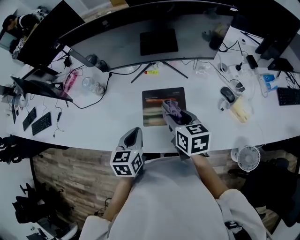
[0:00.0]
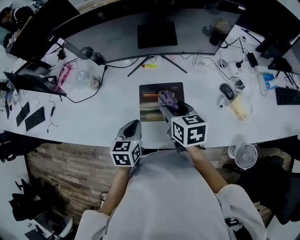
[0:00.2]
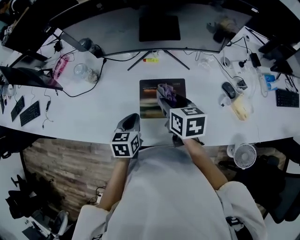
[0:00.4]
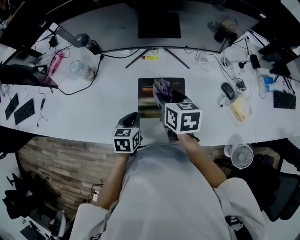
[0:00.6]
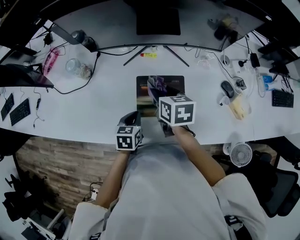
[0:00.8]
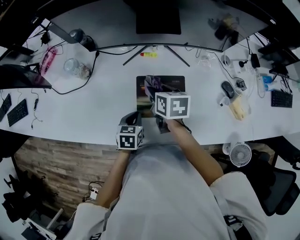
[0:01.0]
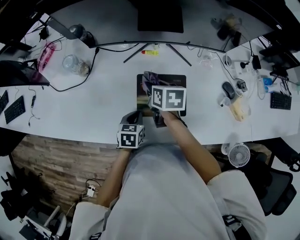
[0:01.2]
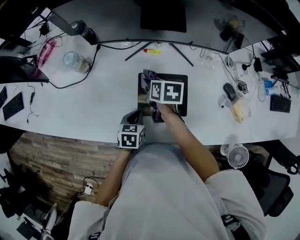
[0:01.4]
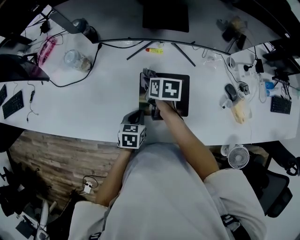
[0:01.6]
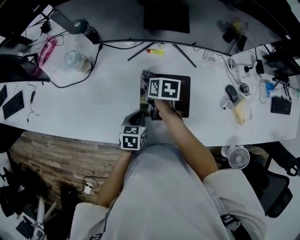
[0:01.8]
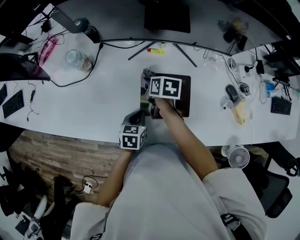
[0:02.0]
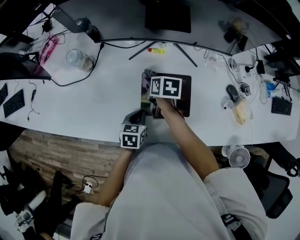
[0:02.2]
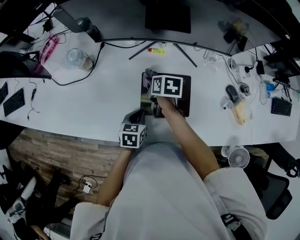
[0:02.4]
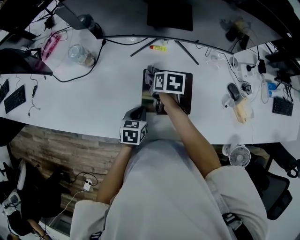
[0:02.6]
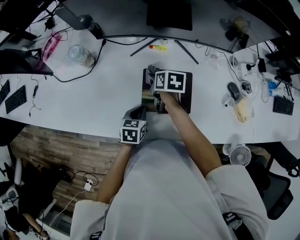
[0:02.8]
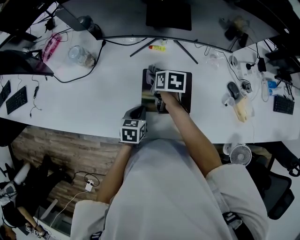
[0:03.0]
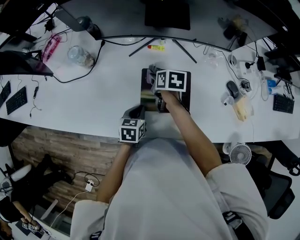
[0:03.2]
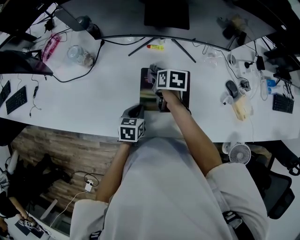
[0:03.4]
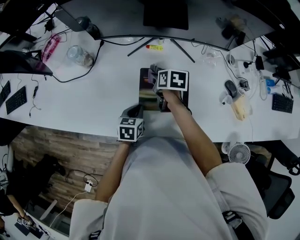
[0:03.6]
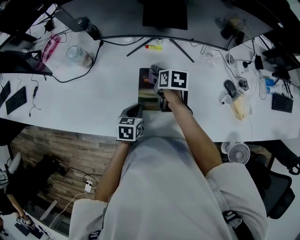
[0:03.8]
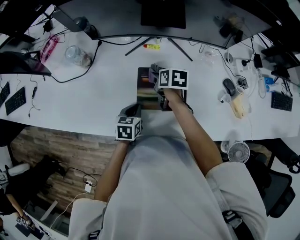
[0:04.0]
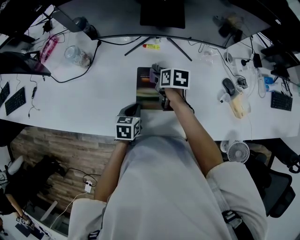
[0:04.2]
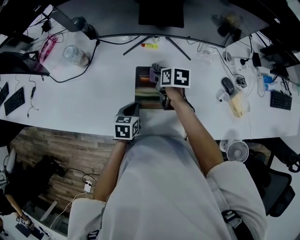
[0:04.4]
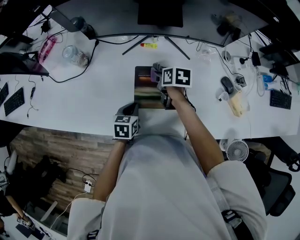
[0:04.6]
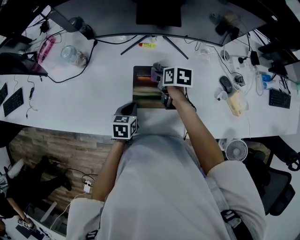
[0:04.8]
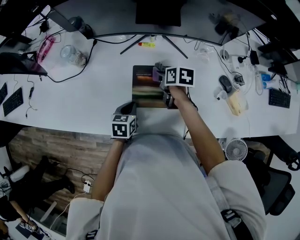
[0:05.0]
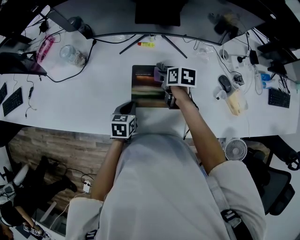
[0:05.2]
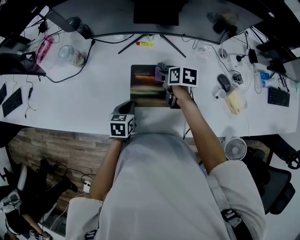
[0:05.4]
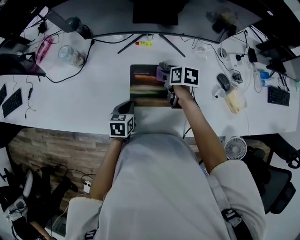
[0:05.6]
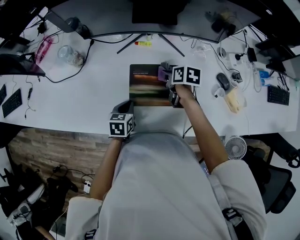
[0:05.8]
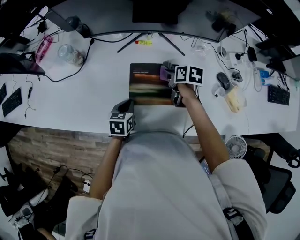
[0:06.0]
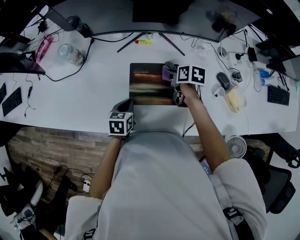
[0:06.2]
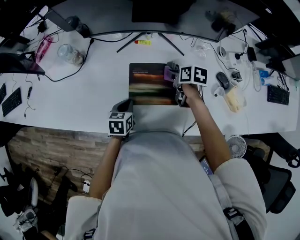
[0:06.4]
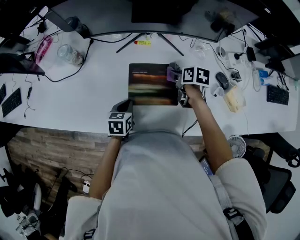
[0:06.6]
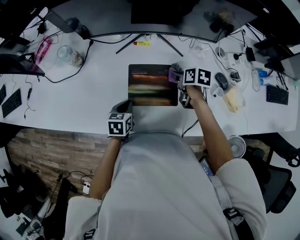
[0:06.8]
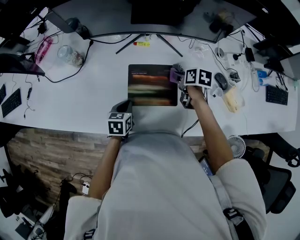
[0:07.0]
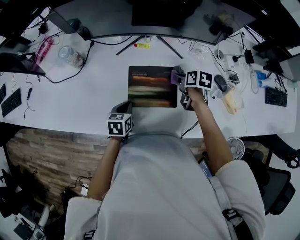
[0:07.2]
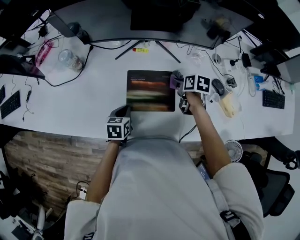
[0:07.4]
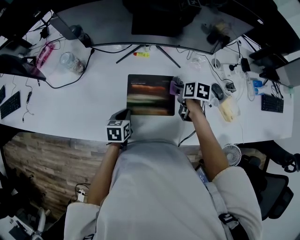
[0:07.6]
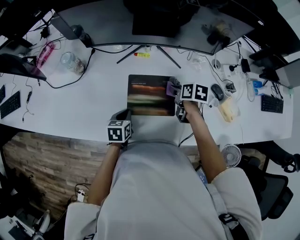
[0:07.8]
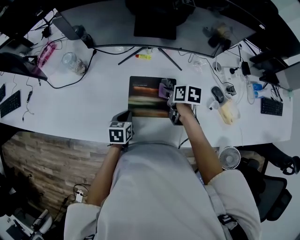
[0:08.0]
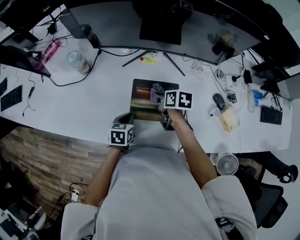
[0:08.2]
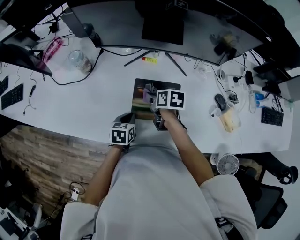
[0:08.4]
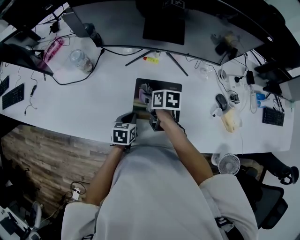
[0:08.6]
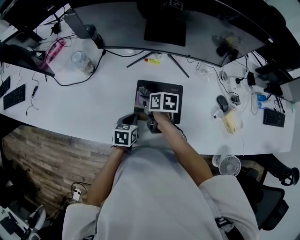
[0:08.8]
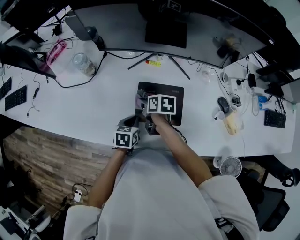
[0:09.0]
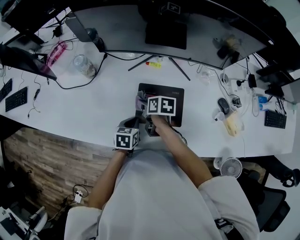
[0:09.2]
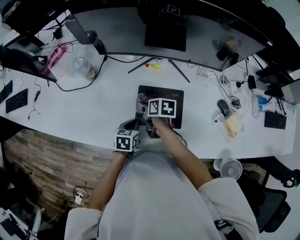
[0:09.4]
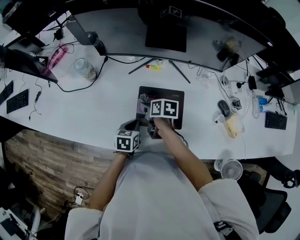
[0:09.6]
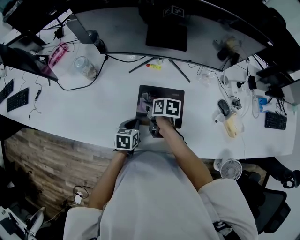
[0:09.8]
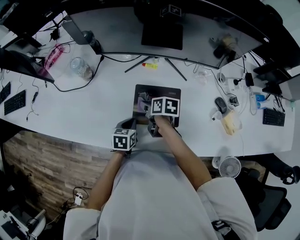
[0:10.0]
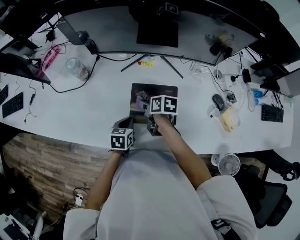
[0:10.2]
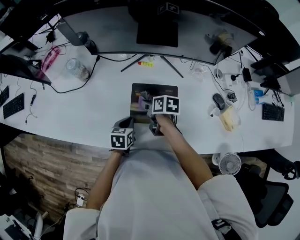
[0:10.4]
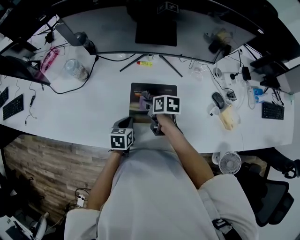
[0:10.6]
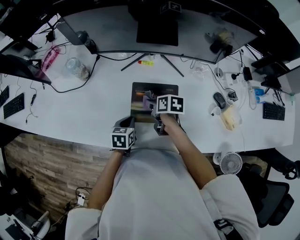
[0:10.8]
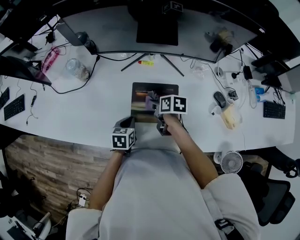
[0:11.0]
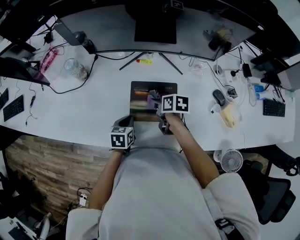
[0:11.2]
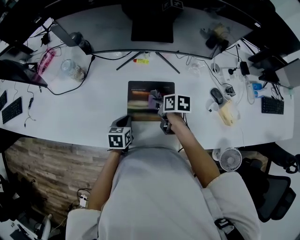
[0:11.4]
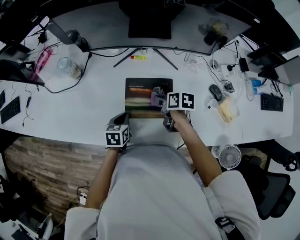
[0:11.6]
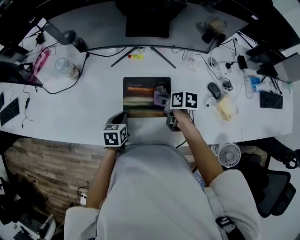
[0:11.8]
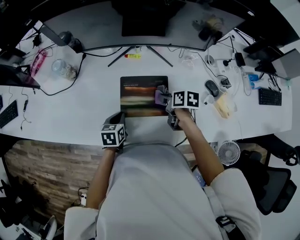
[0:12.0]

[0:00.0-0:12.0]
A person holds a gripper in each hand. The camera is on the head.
0:00.0 to 0:01.6: The left gripper travels downward by some 20 cm; the right gripper goes approximately 25 cm downward, forward and to the left, and swivels some 20 degrees.
0:01.6 to 0:03.0: The grippers move only a little.
0:03.0 to 0:04.4: There are only small adjustments of the grippers.
0:04.4 to 0:06.0: The right gripper heads to the right, covering approximately 10 cm.
0:06.0 to 0:07.6: The right gripper heads to the right, covering about 5 cm.
0:07.6 to 0:09.0: The right gripper is displaced to the left by about 20 cm.
0:09.0 to 0:10.4: The grippers move only a little.
0:10.4 to 0:12.0: The right gripper heads to the right, covering roughly 10 cm.

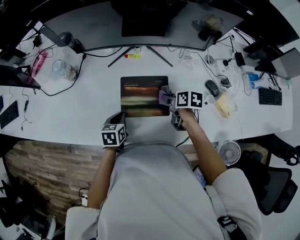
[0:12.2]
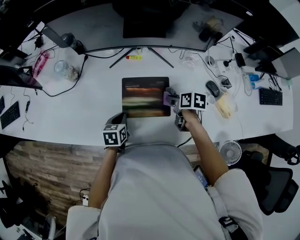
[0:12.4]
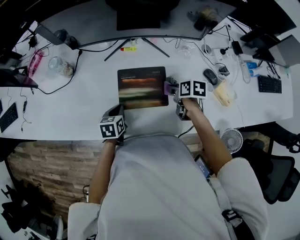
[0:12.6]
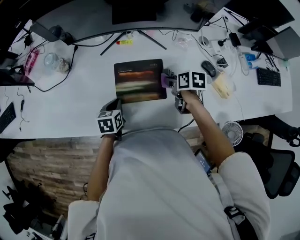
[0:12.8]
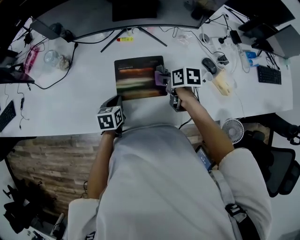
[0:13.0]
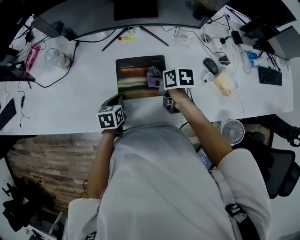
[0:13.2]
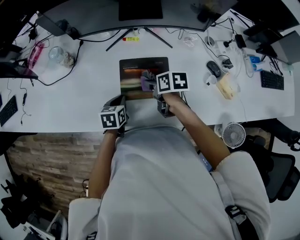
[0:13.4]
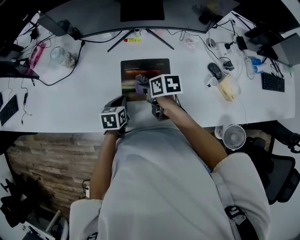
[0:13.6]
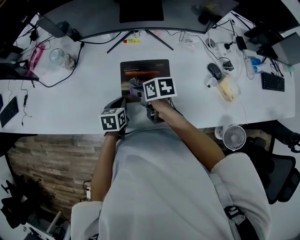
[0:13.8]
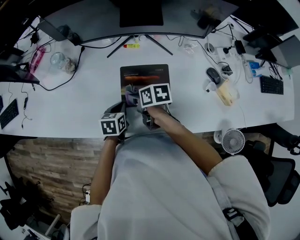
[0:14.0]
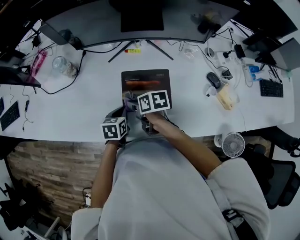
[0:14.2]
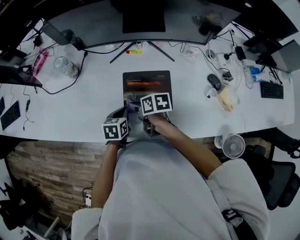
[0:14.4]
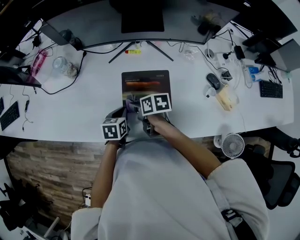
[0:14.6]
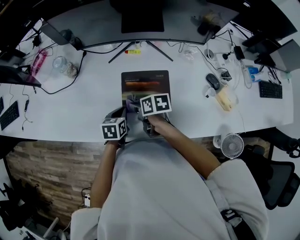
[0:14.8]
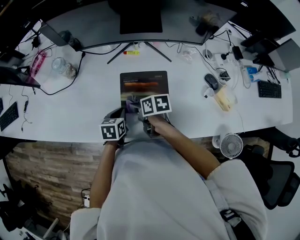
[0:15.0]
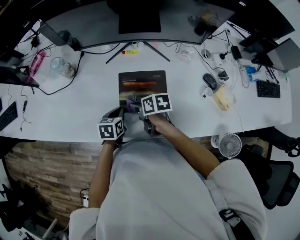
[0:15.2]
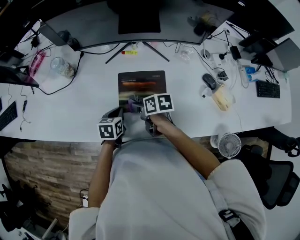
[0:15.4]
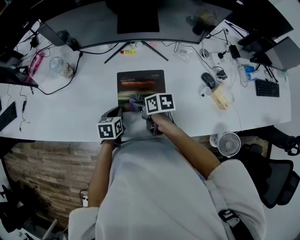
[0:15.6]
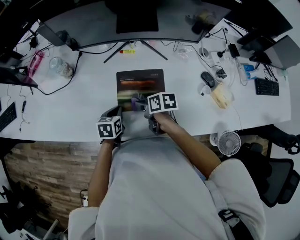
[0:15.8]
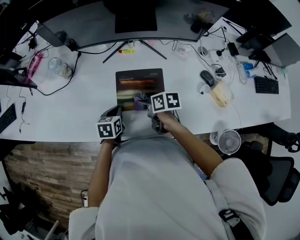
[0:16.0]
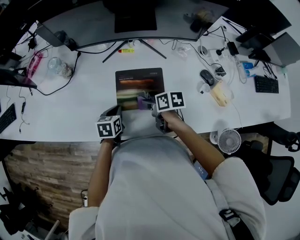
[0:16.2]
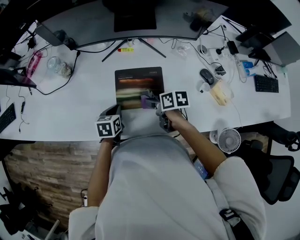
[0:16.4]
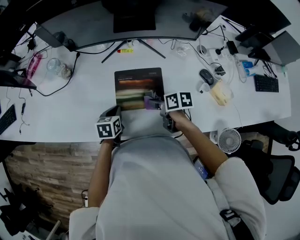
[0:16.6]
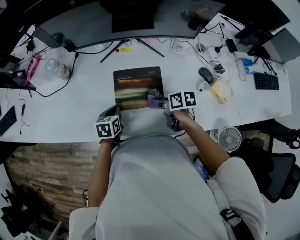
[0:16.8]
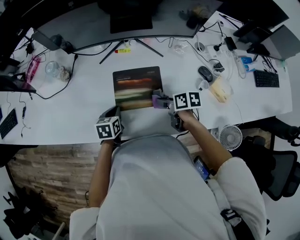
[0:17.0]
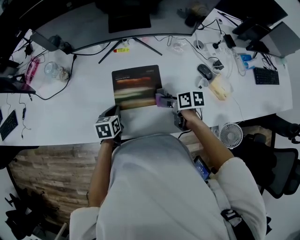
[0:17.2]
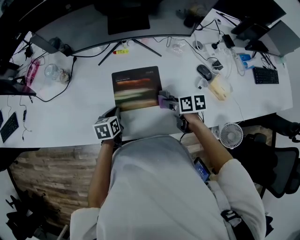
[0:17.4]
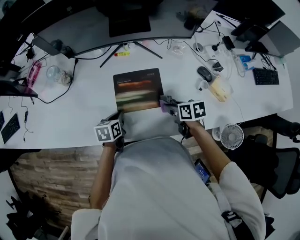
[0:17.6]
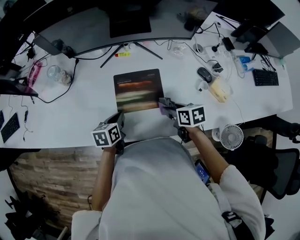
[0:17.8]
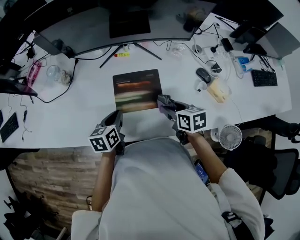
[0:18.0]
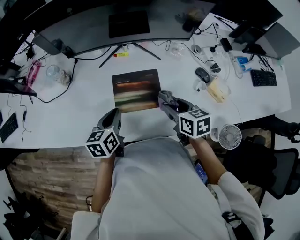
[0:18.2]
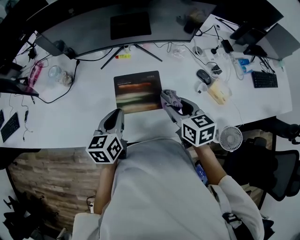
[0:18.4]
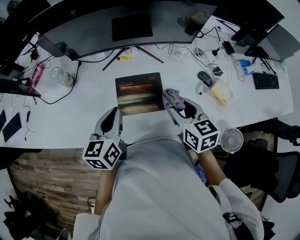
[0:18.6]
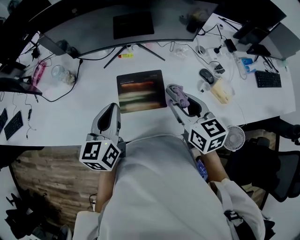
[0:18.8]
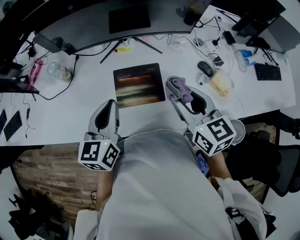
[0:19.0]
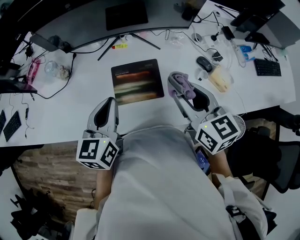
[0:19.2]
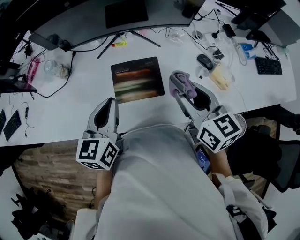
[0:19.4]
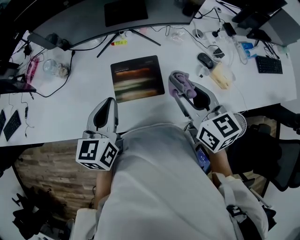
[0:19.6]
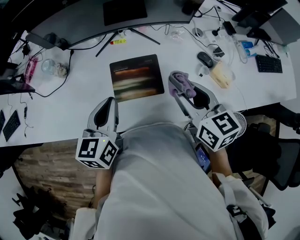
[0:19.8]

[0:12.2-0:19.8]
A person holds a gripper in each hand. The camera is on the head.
0:12.2 to 0:13.8: The right gripper is displaced to the left by about 15 cm.
0:13.8 to 0:15.2: The grippers move only a little.
0:15.2 to 0:16.8: The right gripper travels to the right by roughly 10 cm.
0:16.8 to 0:18.2: Both grippers move upward, approximately 10 cm. The right gripper rotates about 30 degrees.
0:18.2 to 0:19.8: The two grippers go about 10 cm upward.

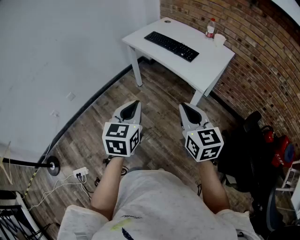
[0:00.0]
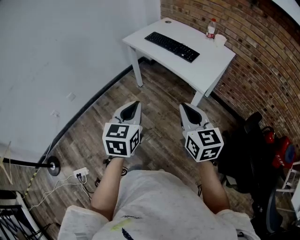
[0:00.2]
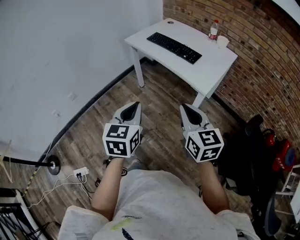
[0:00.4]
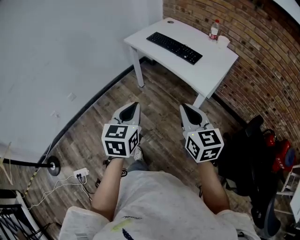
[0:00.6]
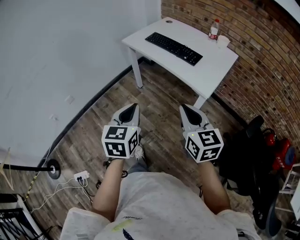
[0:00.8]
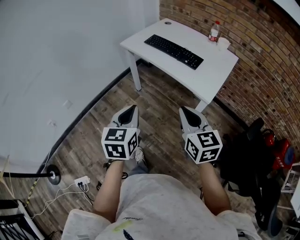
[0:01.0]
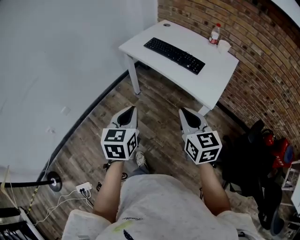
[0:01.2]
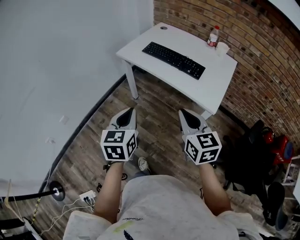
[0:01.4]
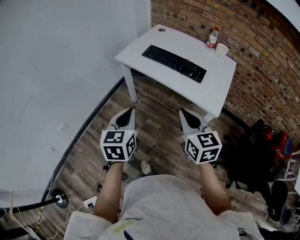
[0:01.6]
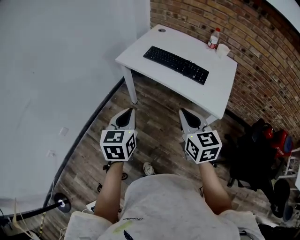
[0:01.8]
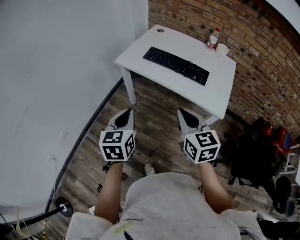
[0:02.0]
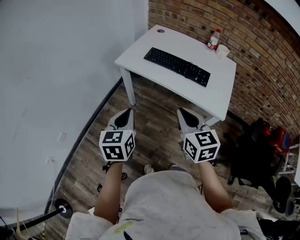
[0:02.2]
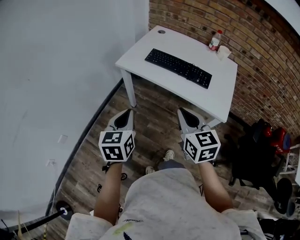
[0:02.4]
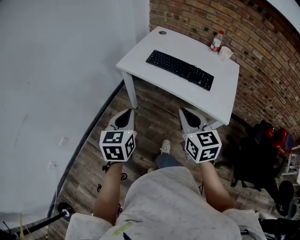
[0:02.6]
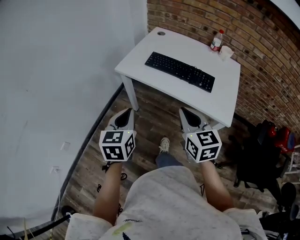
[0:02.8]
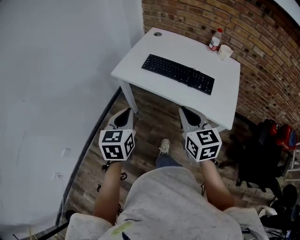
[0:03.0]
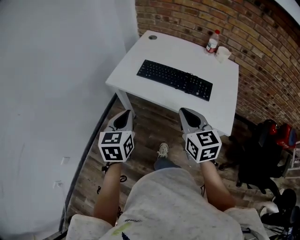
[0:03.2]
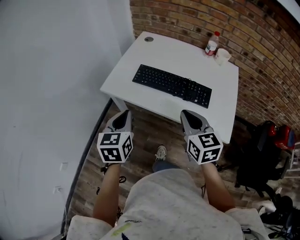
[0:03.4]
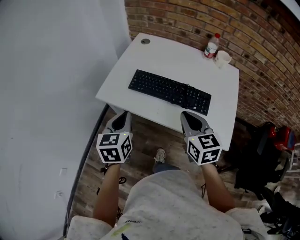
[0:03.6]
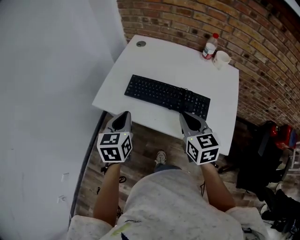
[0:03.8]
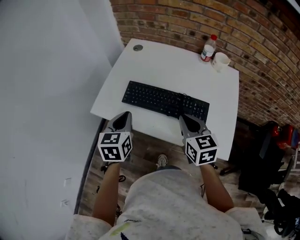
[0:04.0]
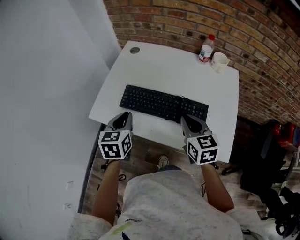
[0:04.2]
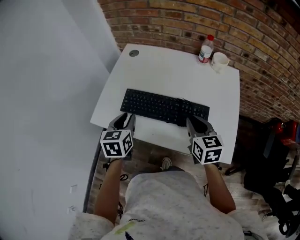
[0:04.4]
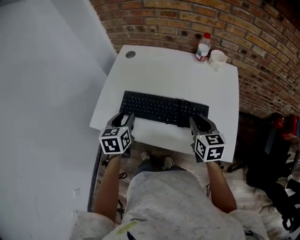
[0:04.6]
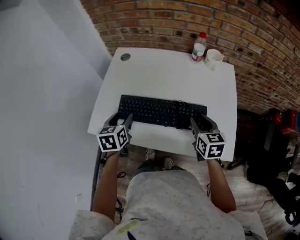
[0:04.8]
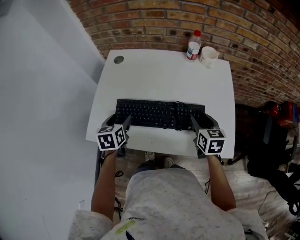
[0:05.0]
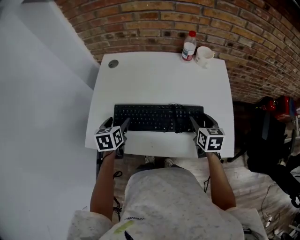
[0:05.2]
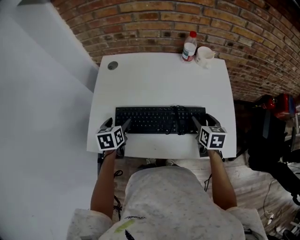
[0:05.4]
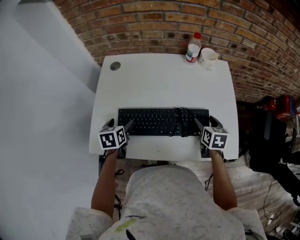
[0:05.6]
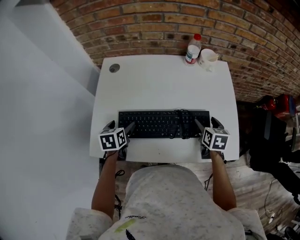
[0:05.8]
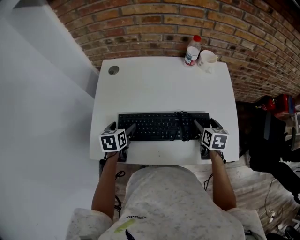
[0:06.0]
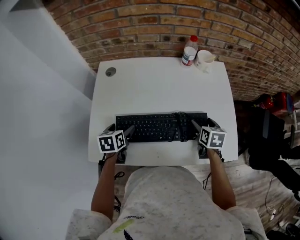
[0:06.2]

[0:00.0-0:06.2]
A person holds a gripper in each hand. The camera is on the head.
0:00.0 to 0:01.6: Both grippers move forward and to the left, about 30 cm.
0:01.6 to 0:03.2: Both grippers travel together forward, some 20 cm.
0:03.2 to 0:04.6: The left gripper moves forward, approximately 30 cm, and opens; the right gripper moves forward and to the right, about 25 cm.
0:04.6 to 0:06.2: The right gripper moves downward and forward, roughly 10 cm, rotates about 30 degrees, and opens up. The left gripper goes roughly 15 cm forward and downward, swivels about 20 degrees, and opens up.
